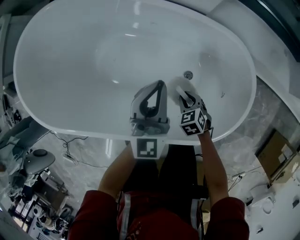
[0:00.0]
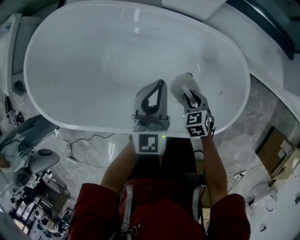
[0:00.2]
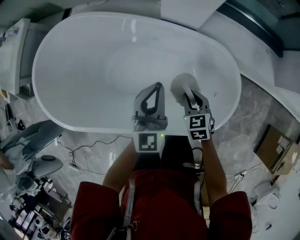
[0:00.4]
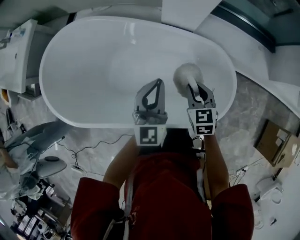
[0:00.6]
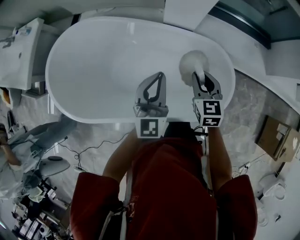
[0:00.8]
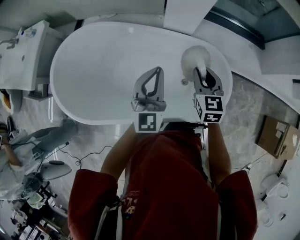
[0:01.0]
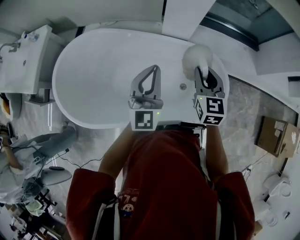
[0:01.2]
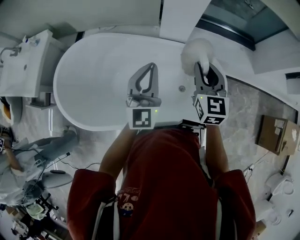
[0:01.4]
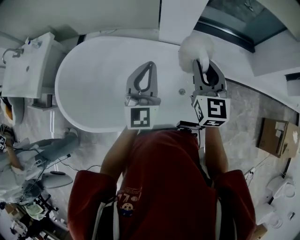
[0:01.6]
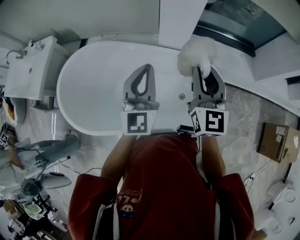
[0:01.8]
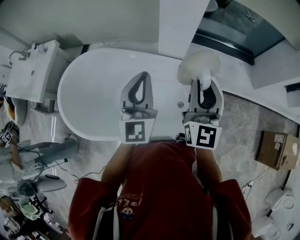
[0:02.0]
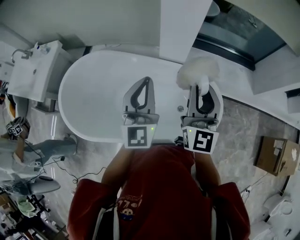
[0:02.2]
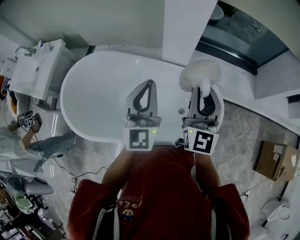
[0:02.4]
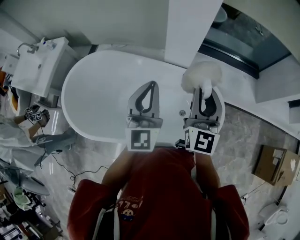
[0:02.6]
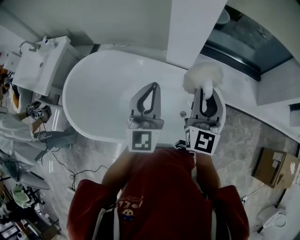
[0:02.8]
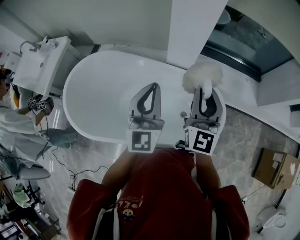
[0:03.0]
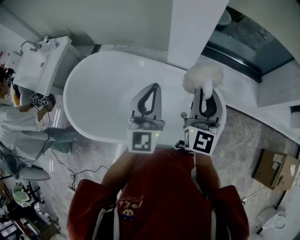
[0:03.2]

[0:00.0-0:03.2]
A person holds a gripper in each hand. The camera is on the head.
0:00.0 to 0:01.6: The left gripper is displaced upward by some 35 cm. Meanwhile the right gripper moves upward, roughly 60 cm, and points its fingers some 60 degrees further upward.
0:01.6 to 0:03.2: The right gripper moves about 5 cm. The left gripper moves some 5 cm.

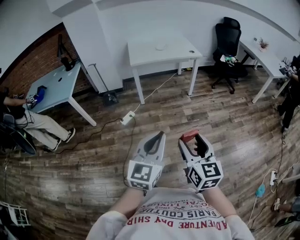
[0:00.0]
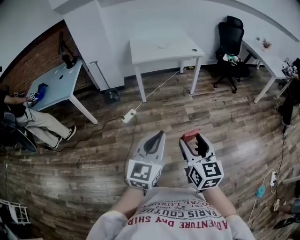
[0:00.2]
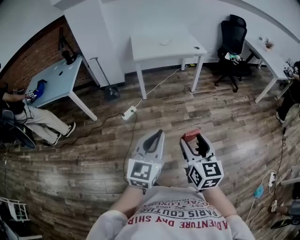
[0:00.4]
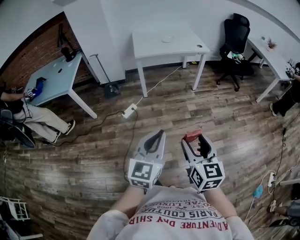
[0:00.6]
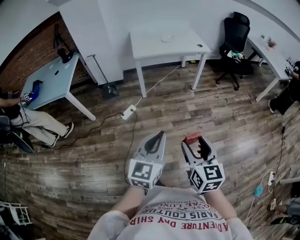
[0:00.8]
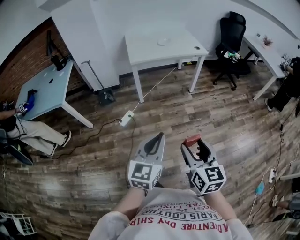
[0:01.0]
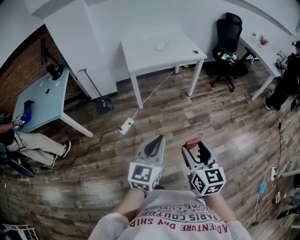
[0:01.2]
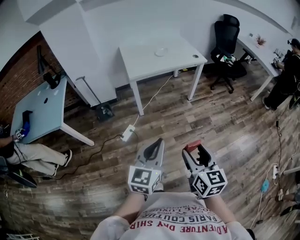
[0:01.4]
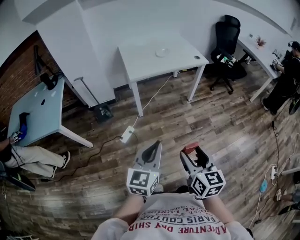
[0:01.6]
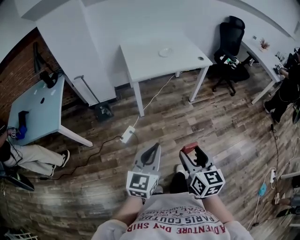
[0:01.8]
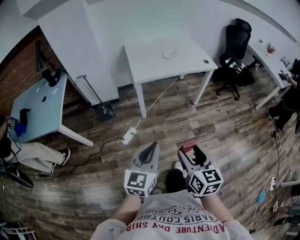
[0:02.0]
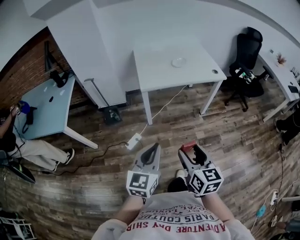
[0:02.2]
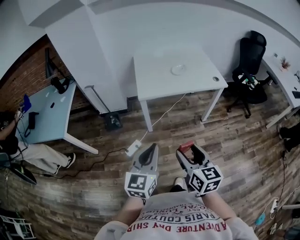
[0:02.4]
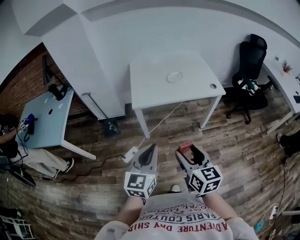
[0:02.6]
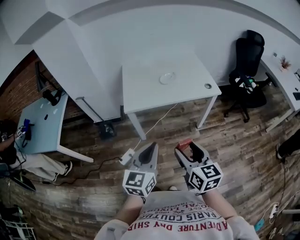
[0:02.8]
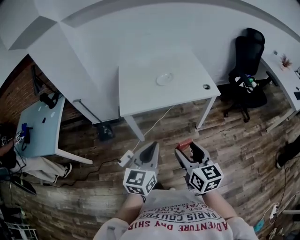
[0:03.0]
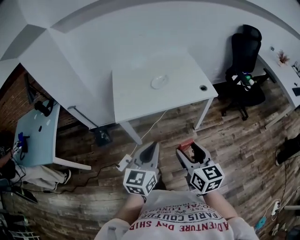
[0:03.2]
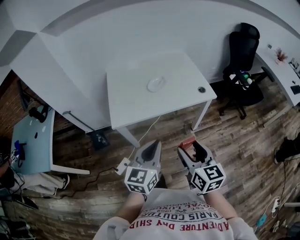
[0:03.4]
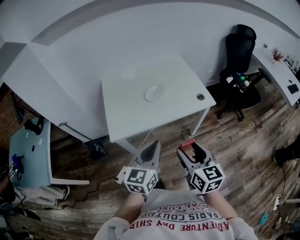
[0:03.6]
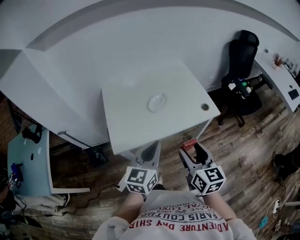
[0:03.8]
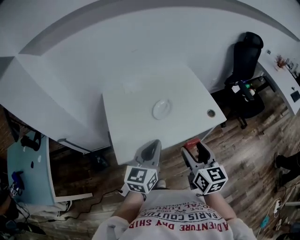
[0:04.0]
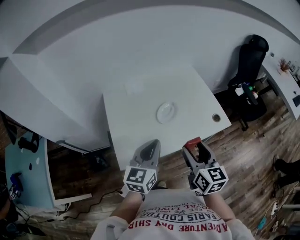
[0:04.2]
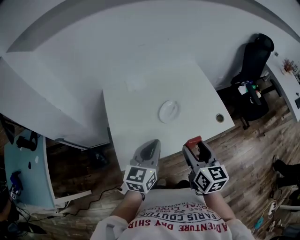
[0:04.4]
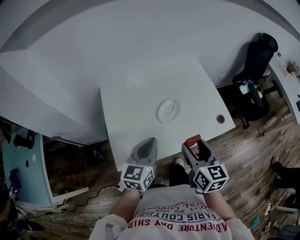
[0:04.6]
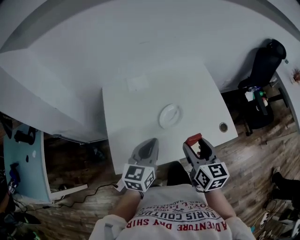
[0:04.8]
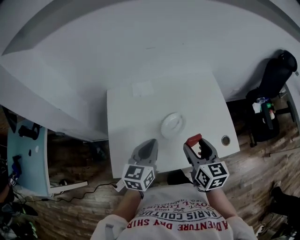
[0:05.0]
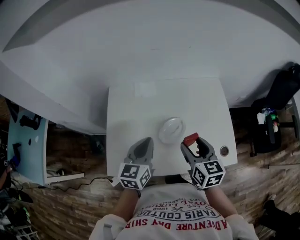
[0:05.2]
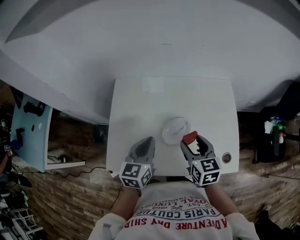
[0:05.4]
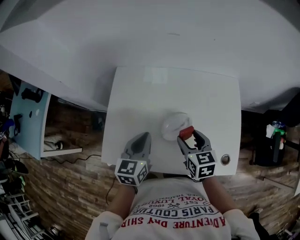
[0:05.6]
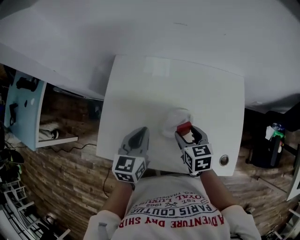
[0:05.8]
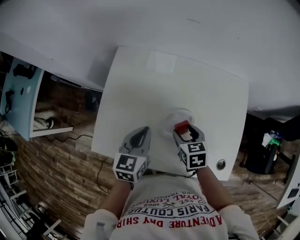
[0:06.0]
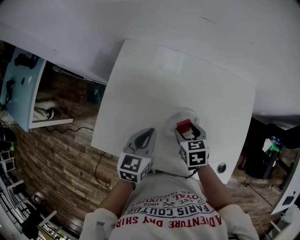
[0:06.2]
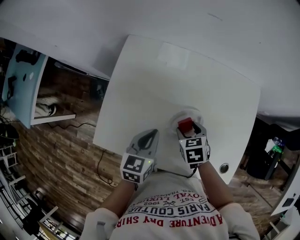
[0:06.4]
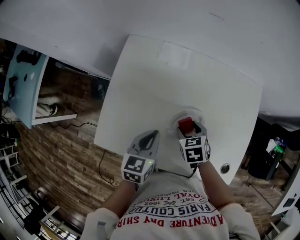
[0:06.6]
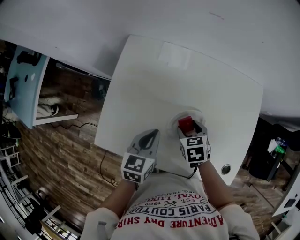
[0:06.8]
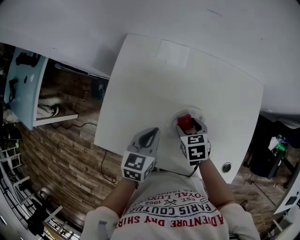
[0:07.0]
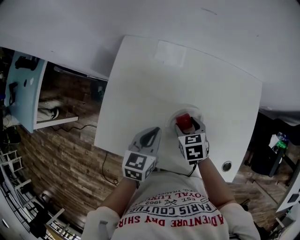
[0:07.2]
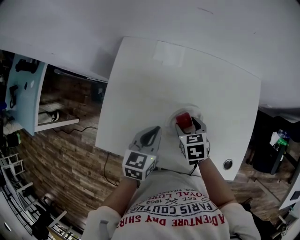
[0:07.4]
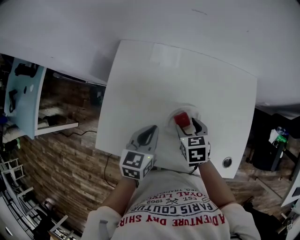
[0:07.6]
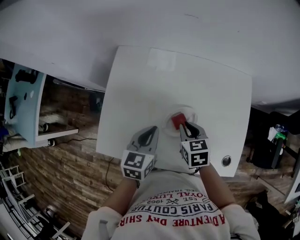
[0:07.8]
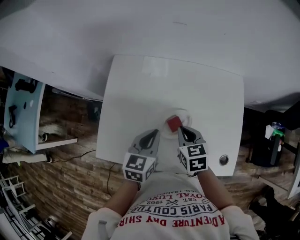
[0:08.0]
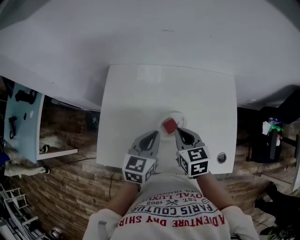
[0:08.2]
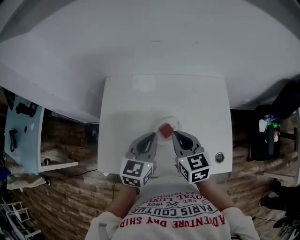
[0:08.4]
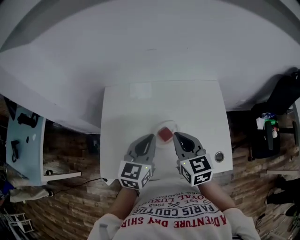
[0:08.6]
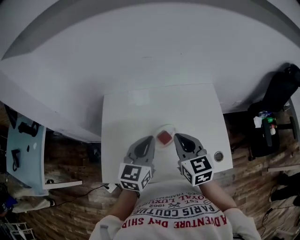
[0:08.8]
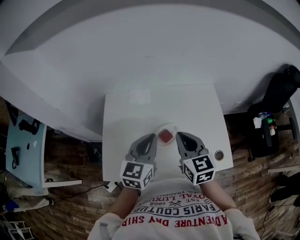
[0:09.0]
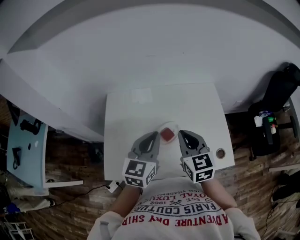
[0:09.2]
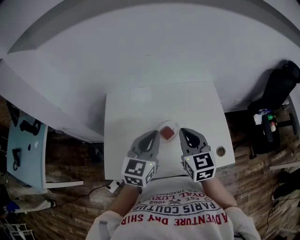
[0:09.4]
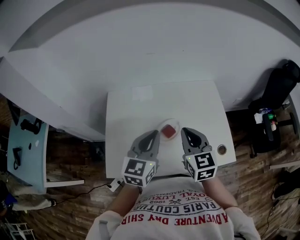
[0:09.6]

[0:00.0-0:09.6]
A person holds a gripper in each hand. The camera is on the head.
0:00.0 to 0:01.6: Both grippers move forward and to the left, about 30 cm.
0:01.6 to 0:03.2: Both grippers travel together forward and to the right, approximately 40 cm.
0:03.2 to 0:04.8: The pair of grippers is taken forward, roughly 40 cm.
0:04.8 to 0:06.4: The left gripper travels downward by approximately 15 cm, and changes its angle by roughly 30 degrees. The right gripper travels downward by roughly 20 cm, and tilts its fingers some 40 degrees downward.
0:06.4 to 0:08.0: The left gripper moves approximately 5 cm. Meanwhile the right gripper is displaced upward by roughly 10 cm, and closes.
0:08.0 to 0:09.6: Both grippers move upward, roughly 15 cm. The left gripper swivels some 20 degrees, while the right gripper changes its angle by approximately 30 degrees.

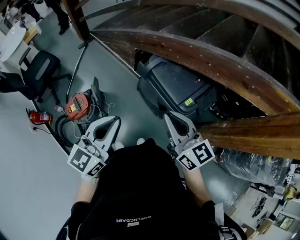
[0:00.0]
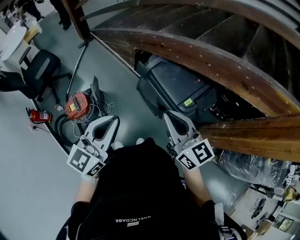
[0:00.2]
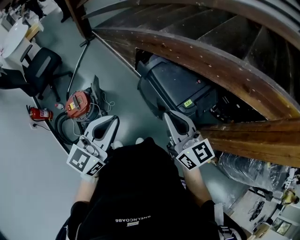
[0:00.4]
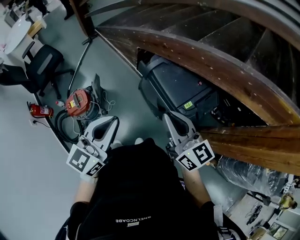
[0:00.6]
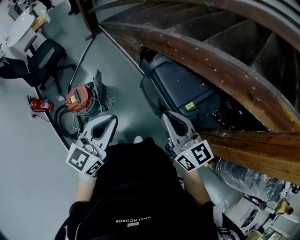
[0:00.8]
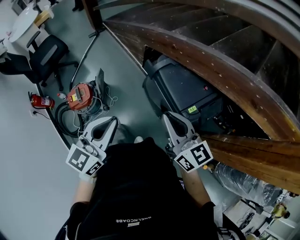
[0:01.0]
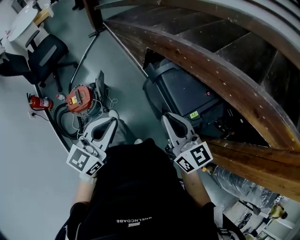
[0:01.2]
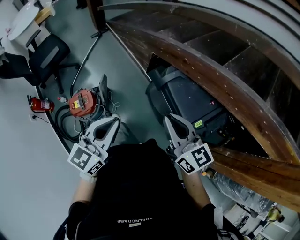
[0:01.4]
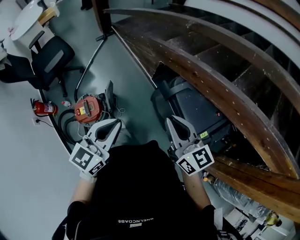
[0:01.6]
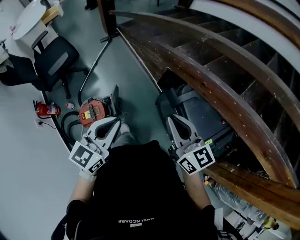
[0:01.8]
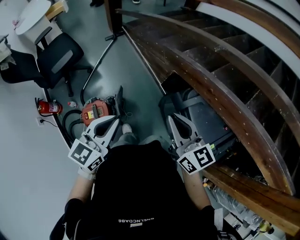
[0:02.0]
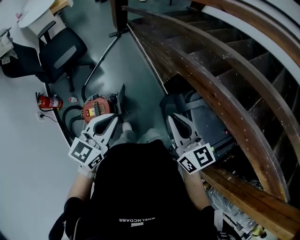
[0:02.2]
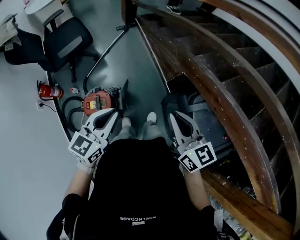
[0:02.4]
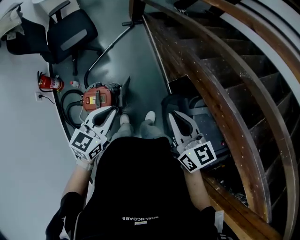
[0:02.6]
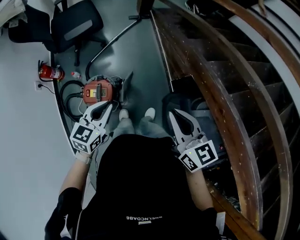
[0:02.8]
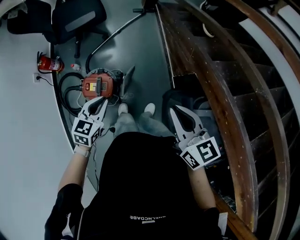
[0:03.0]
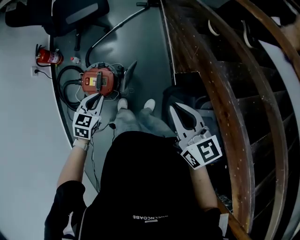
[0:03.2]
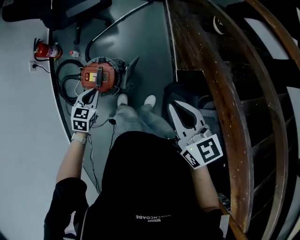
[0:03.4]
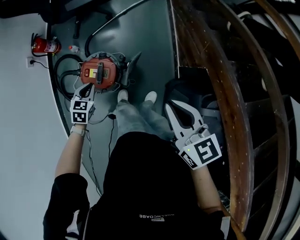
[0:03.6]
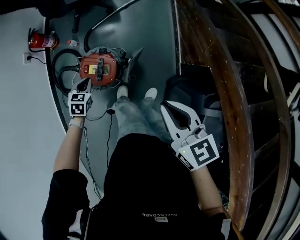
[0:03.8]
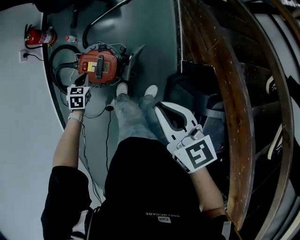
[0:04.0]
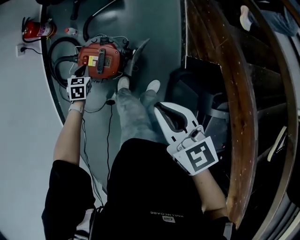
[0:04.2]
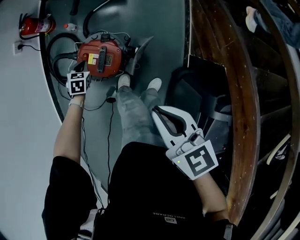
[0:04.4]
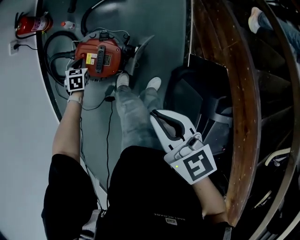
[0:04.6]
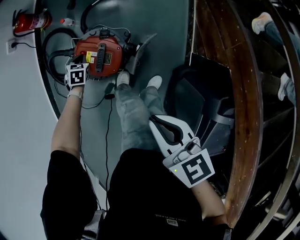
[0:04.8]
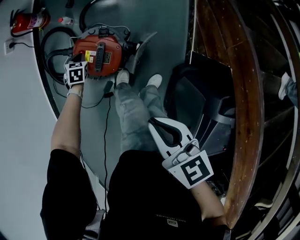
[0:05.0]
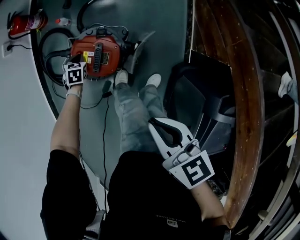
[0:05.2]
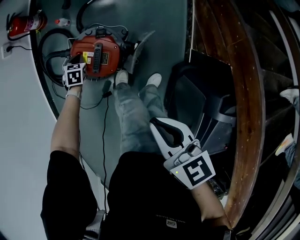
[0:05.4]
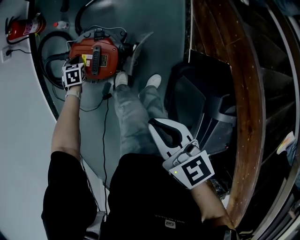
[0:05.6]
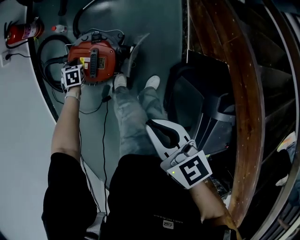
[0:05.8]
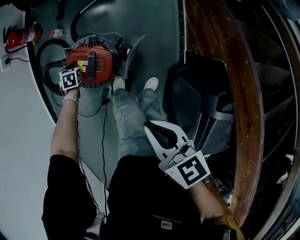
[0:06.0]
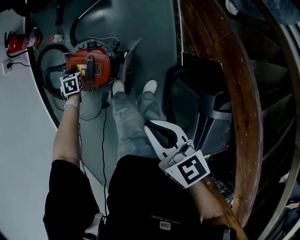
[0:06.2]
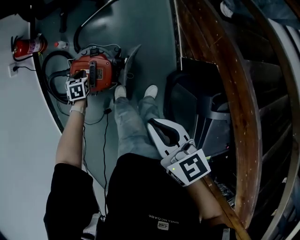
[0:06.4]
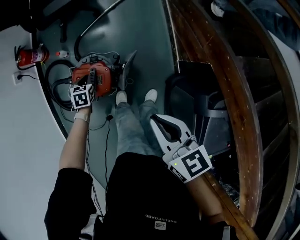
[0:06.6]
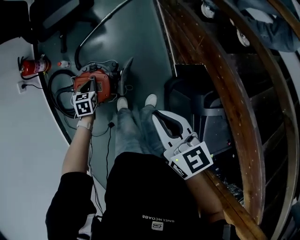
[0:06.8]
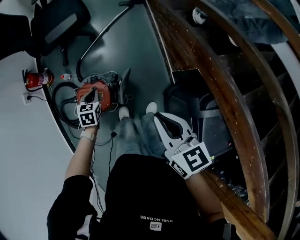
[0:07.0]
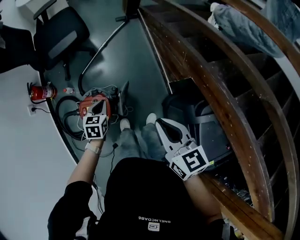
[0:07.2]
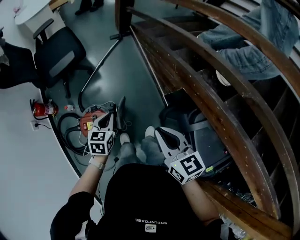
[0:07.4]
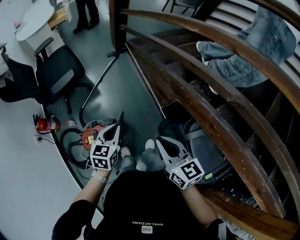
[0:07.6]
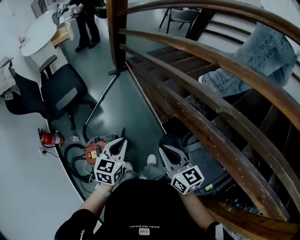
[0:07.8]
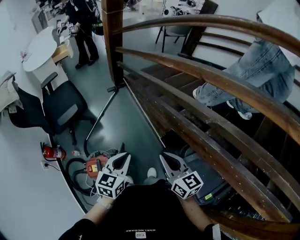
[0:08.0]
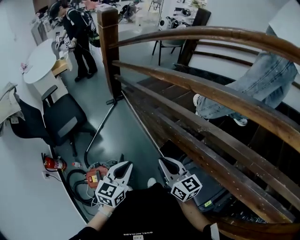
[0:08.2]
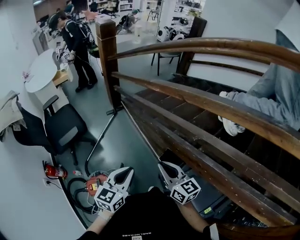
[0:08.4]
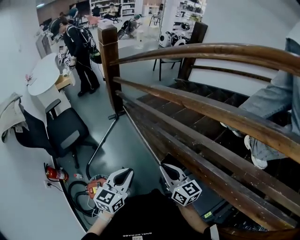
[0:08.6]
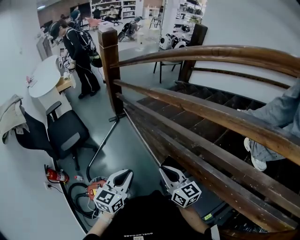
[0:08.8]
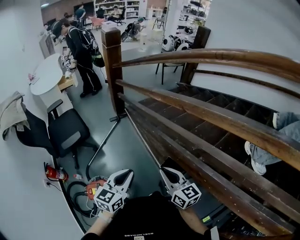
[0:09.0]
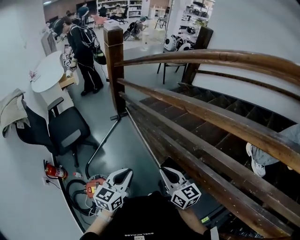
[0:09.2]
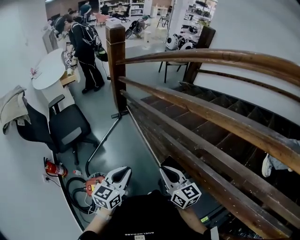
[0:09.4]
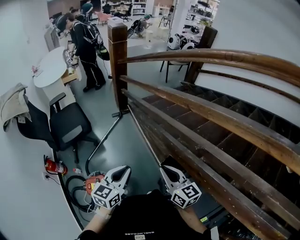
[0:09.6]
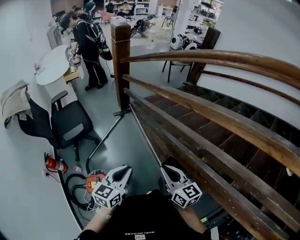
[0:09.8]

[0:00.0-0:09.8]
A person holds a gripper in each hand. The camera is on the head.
0:00.0 to 0:01.4: The left gripper is displaced forward, downward and to the left by approximately 15 cm. The right gripper goes roughly 15 cm forward and to the left.
0:01.4 to 0:02.8: The right gripper heads forward and to the left, covering roughly 30 cm, and turns by approximately 20 degrees, while the left gripper shifts approximately 35 cm to the left, forward and downward, and changes its angle by approximately 30 degrees.
0:02.8 to 0:04.2: The right gripper moves approximately 25 cm, and swivels some 30 degrees, while the left gripper goes about 40 cm downward, and tips its fingers downward by about 30 degrees.
0:04.2 to 0:05.6: The right gripper moves downward, approximately 10 cm; the left gripper goes roughly 15 cm downward.
0:05.6 to 0:07.0: The right gripper moves upward and to the right, approximately 20 cm, and changes its angle by roughly 20 degrees. Meanwhile the left gripper shifts some 35 cm upward and to the right.
0:07.0 to 0:08.4: The right gripper is displaced to the right and upward by about 25 cm, and rotates roughly 30 degrees, while the left gripper goes approximately 50 cm upward and to the right, and tilts its fingers roughly 40 degrees upward.
0:08.4 to 0:09.8: There are only small adjustments of the grippers.
